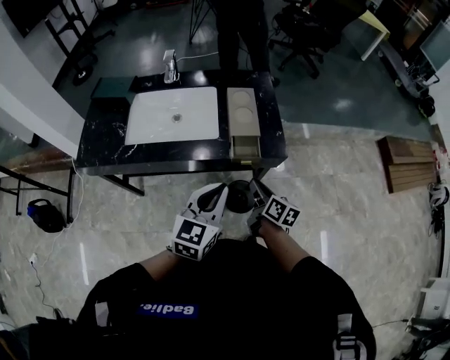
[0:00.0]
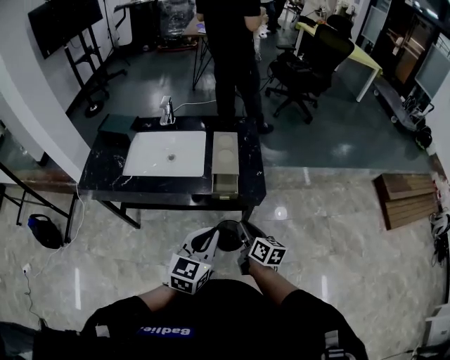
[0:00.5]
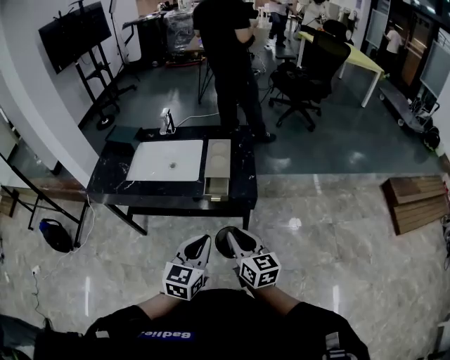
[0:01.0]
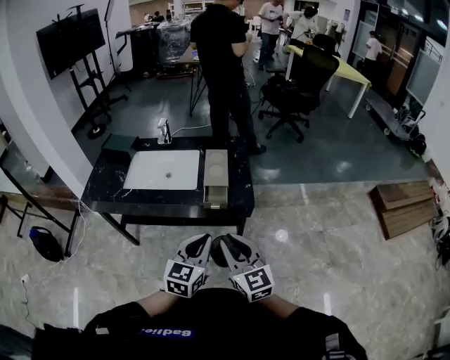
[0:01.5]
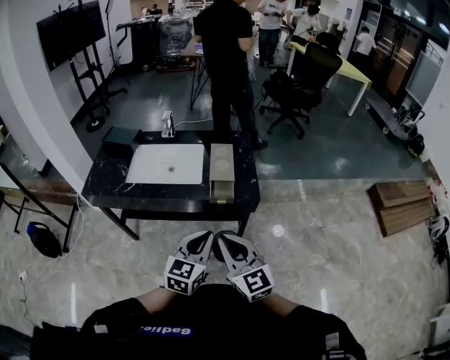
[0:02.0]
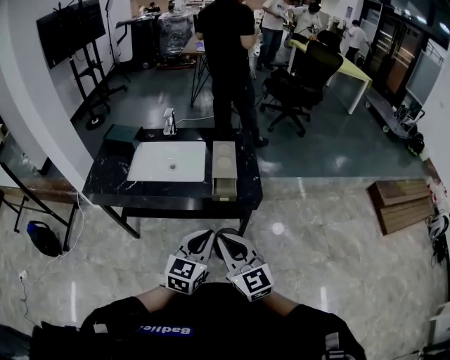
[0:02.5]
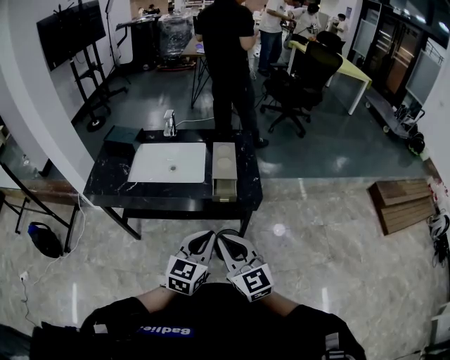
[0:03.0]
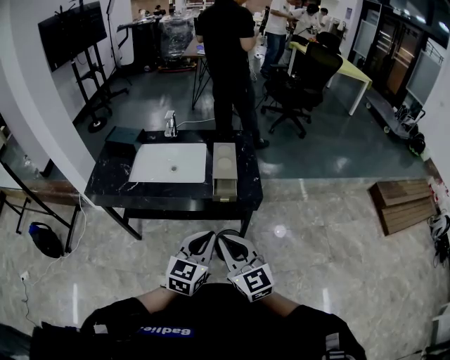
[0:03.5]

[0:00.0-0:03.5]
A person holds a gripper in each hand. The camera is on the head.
0:00.0 to 0:02.0: The right gripper travels upward and backward by some 25 cm, and twists approximately 60 degrees counterclockwise, seen from behind, while the left gripper shifts some 10 cm backward and to the right.
0:02.0 to 0:03.5: The grippers make only small movements.

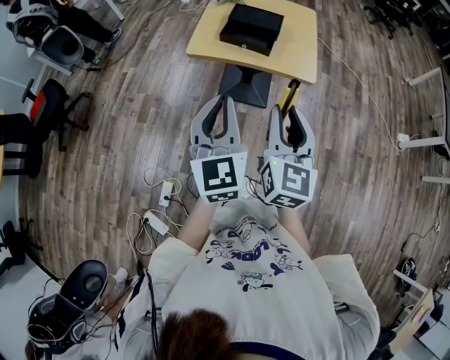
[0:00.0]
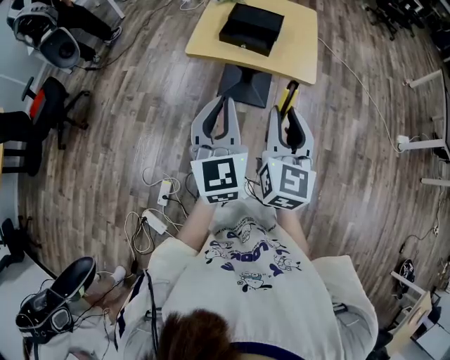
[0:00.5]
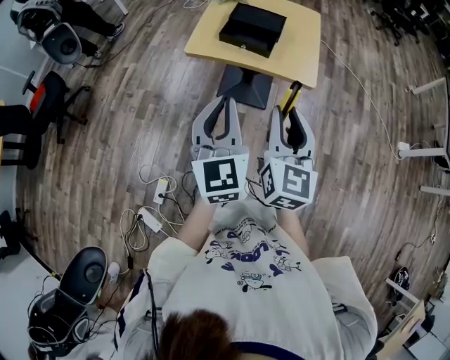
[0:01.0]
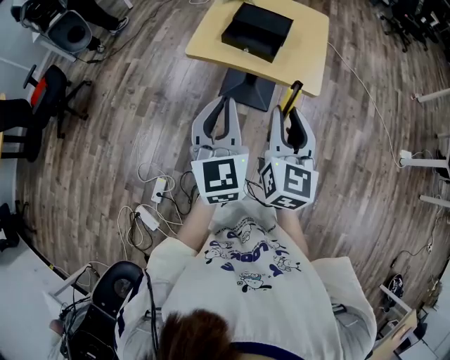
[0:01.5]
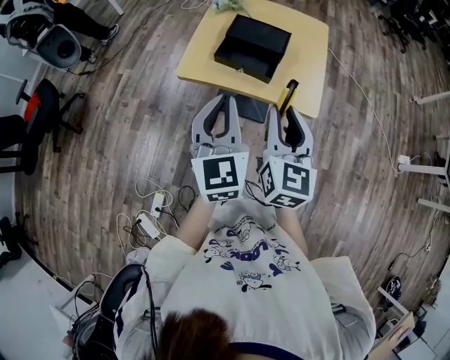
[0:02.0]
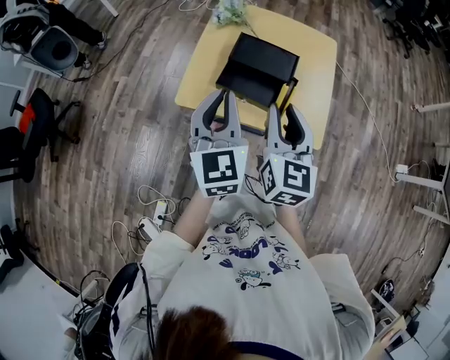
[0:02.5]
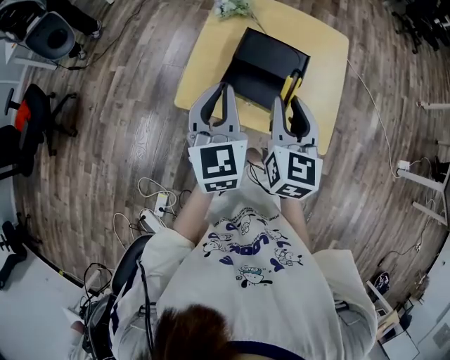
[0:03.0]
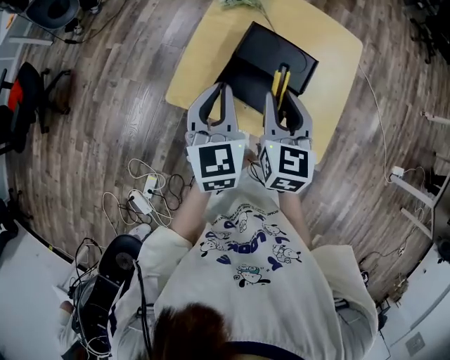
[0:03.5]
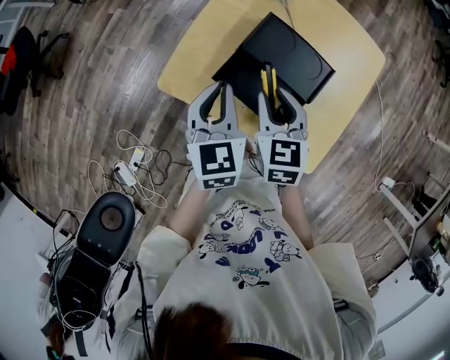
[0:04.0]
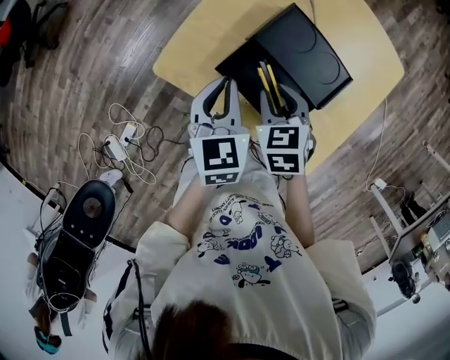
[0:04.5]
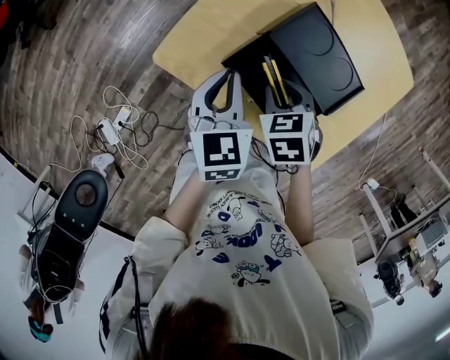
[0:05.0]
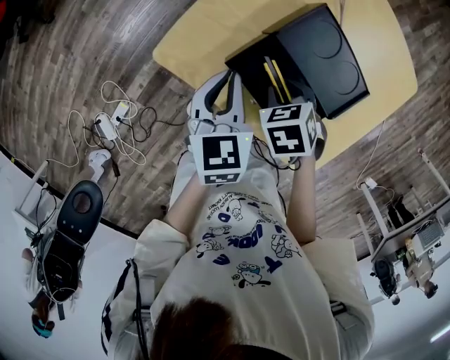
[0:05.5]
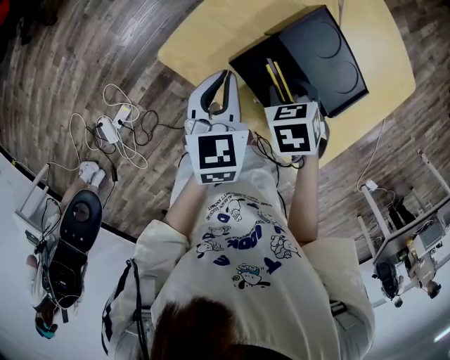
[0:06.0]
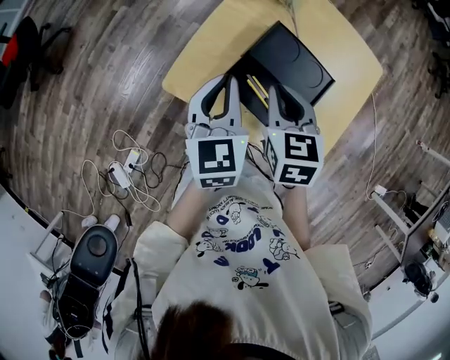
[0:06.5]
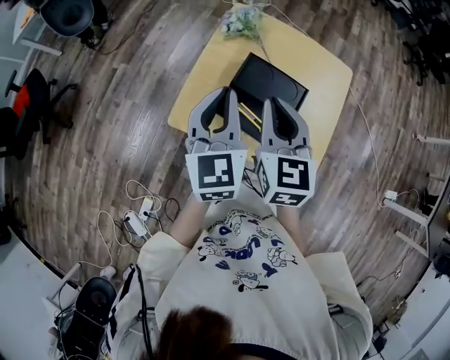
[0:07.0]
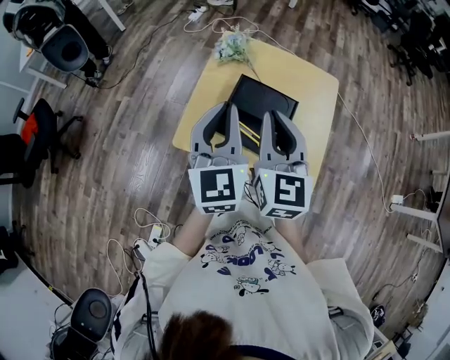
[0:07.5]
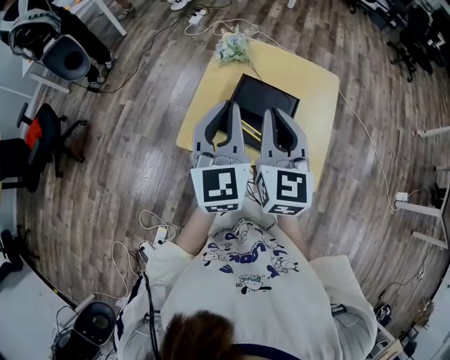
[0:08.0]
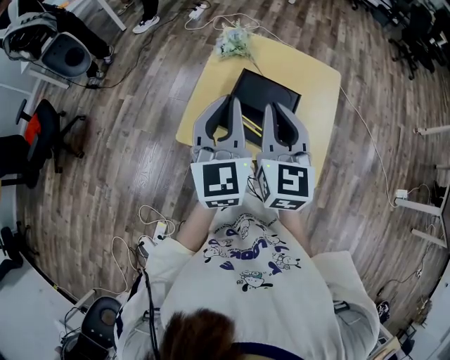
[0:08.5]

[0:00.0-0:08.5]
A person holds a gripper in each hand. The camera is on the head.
0:00.0 to 0:02.0: Both grippers move forward, about 15 cm.
0:02.0 to 0:04.0: Both grippers move forward and downward, roughly 30 cm. The left gripper swivels some 30 degrees. The right gripper changes its angle by approximately 40 degrees.
0:04.0 to 0:06.5: The right gripper travels downward and back again, some 15 cm each way. The left gripper goes downward and returns, approximately 10 cm each way.
0:06.5 to 0:08.5: The two grippers go about 15 cm upward. The left gripper swivels some 30 degrees. Meanwhile the right gripper points its fingers about 30 degrees further upward.

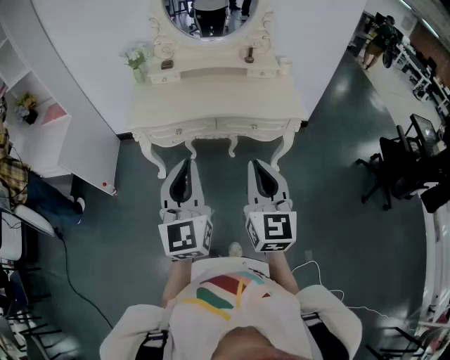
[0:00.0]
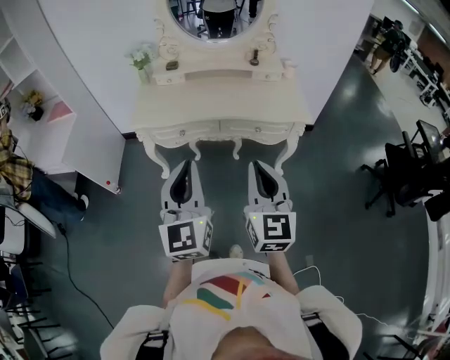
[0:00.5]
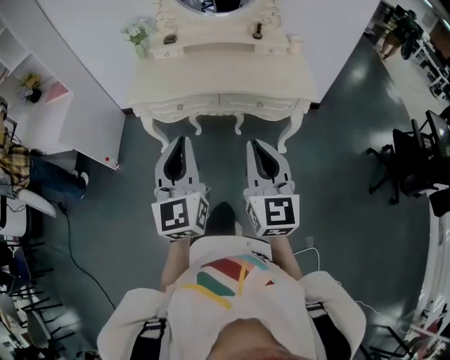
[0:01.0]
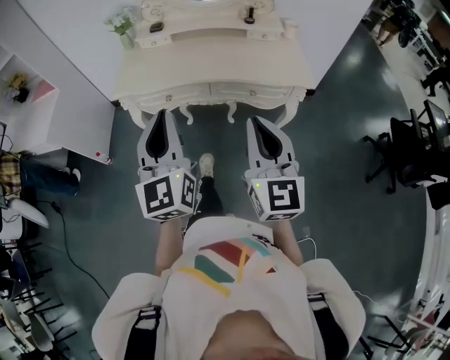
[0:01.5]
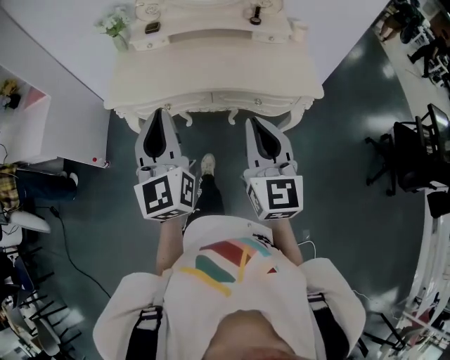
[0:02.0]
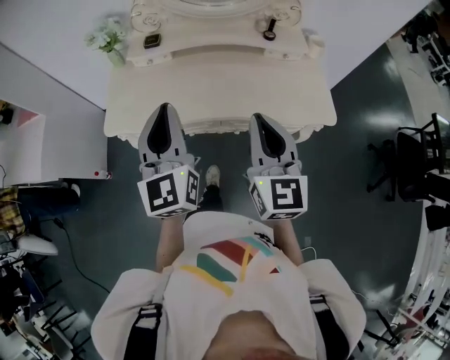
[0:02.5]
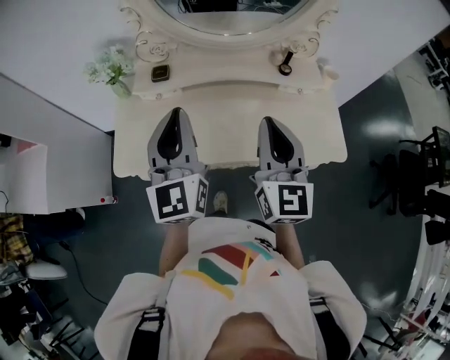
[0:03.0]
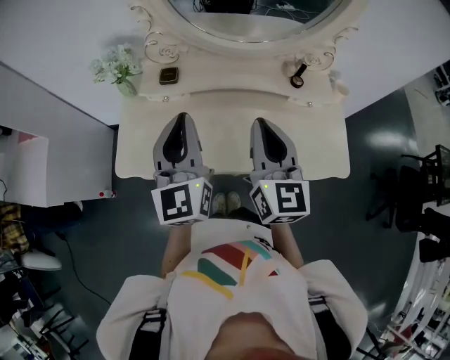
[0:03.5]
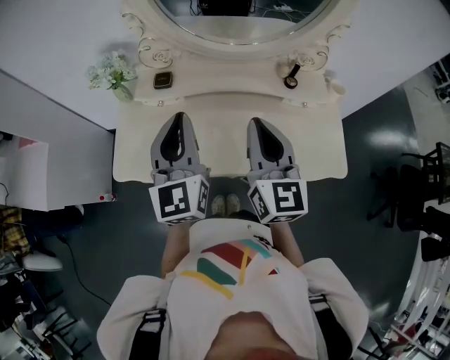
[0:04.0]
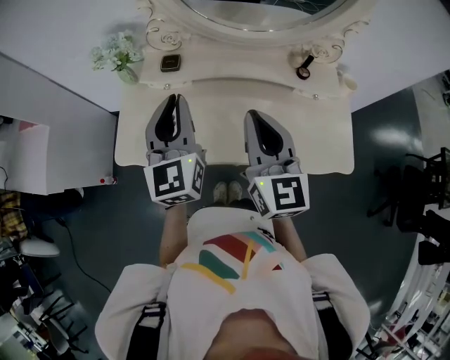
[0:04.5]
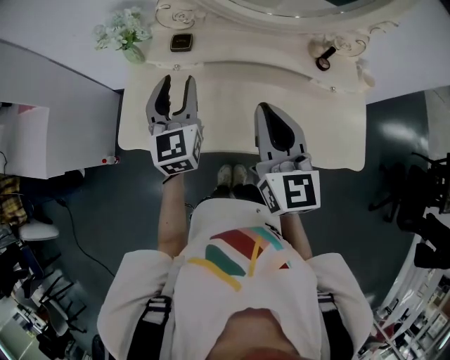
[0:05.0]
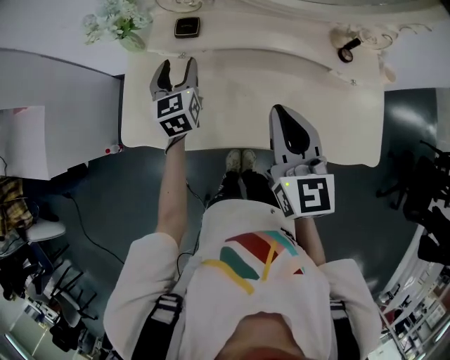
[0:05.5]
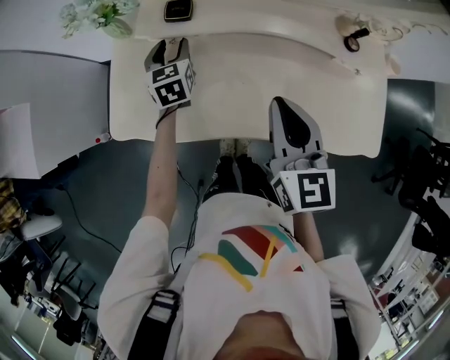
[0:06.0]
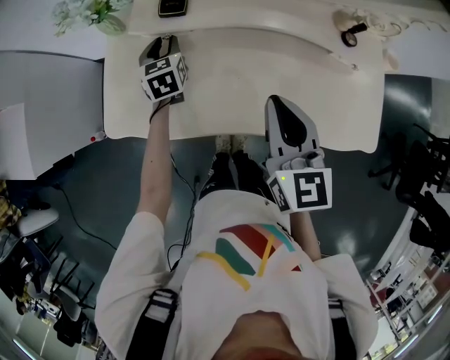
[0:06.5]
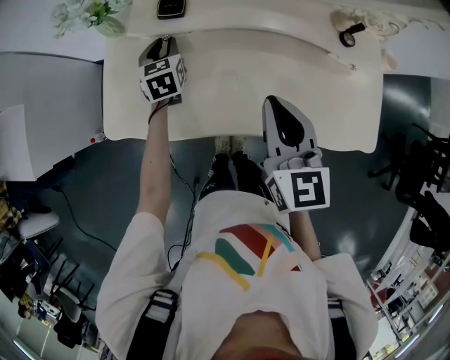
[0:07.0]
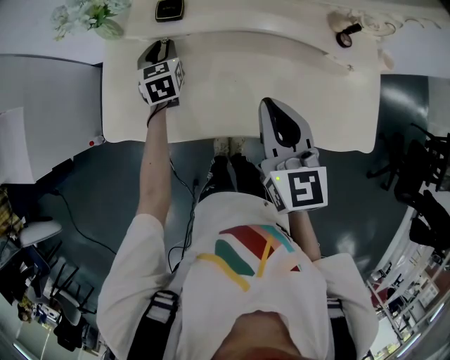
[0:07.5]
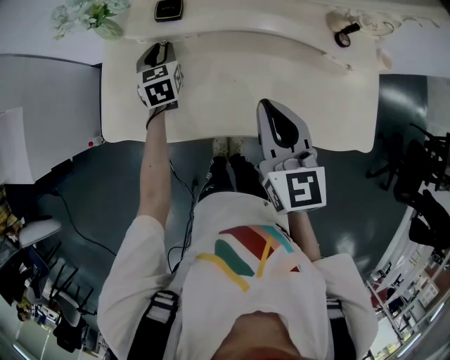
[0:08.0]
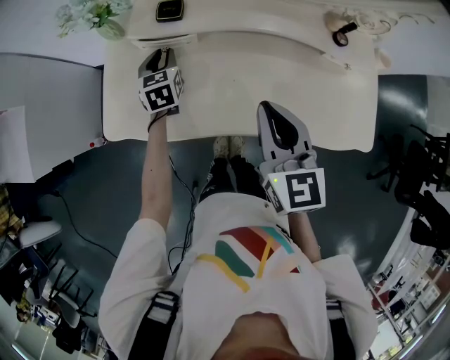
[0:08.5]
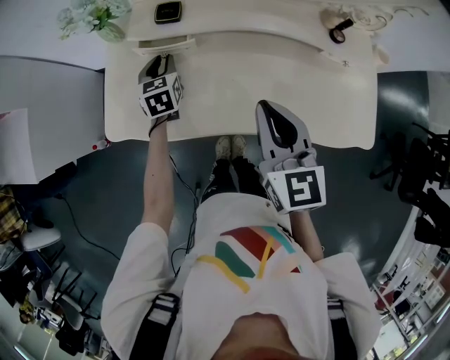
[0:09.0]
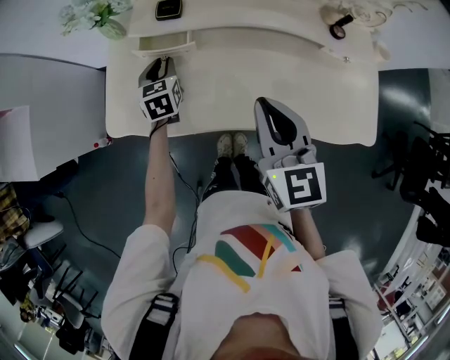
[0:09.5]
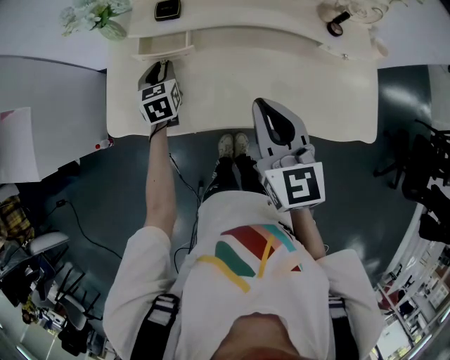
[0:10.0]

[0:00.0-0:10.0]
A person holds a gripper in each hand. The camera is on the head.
0:00.0 to 0:02.0: The two grippers go approximately 15 cm forward.
0:02.0 to 0:04.0: Both grippers move forward, roughly 35 cm.
0:04.0 to 0:06.0: The right gripper shifts approximately 15 cm downward and to the left; the left gripper shifts some 35 cm downward and forward, tilts its fingers some 40 degrees downward, and opens its fingers.
0:06.0 to 0:08.0: The left gripper closes its fingers.
0:08.0 to 0:10.0: The left gripper goes approximately 5 cm backward.

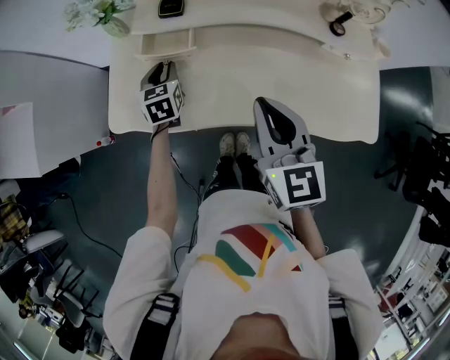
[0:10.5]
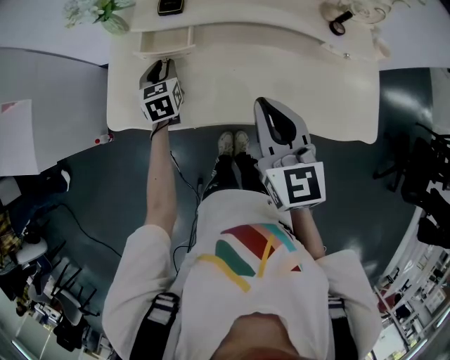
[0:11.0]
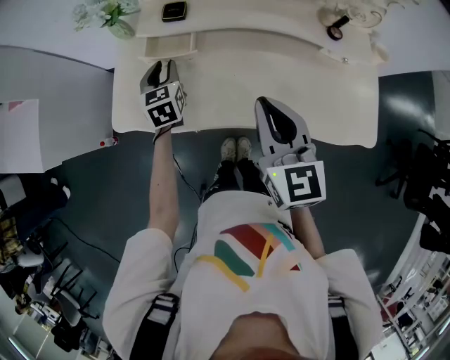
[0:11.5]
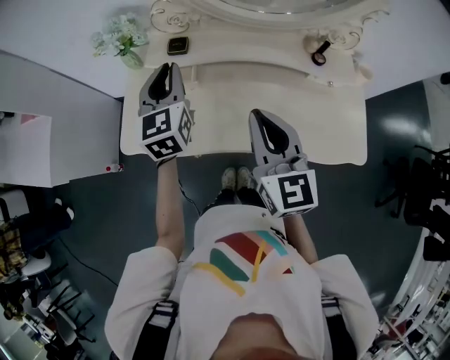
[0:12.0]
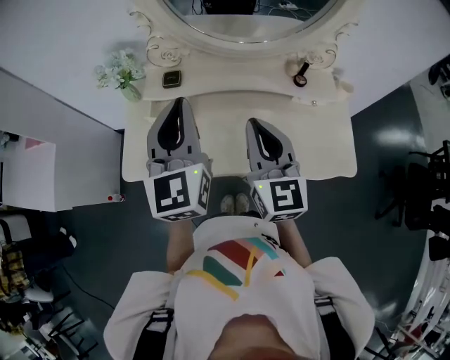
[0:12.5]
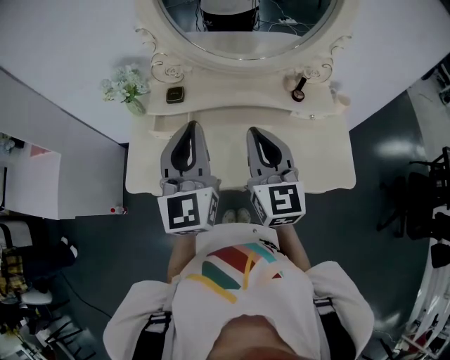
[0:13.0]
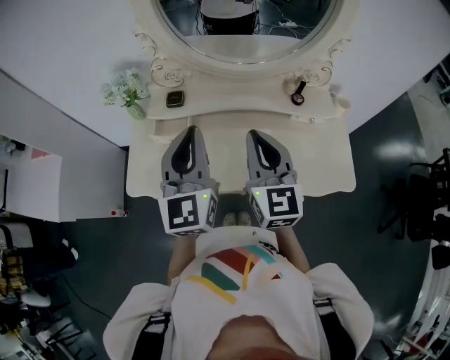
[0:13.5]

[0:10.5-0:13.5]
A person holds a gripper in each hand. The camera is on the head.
0:10.5 to 0:12.0: The right gripper shifts approximately 5 cm upward. The left gripper moves upward, roughly 25 cm, and turns by roughly 30 degrees.
0:12.0 to 0:13.5: The left gripper heads upward, backward and to the right, covering some 15 cm; the right gripper shifts by about 5 cm.

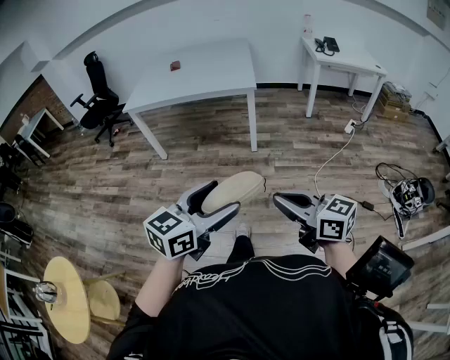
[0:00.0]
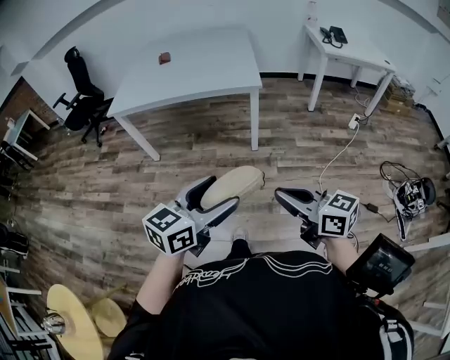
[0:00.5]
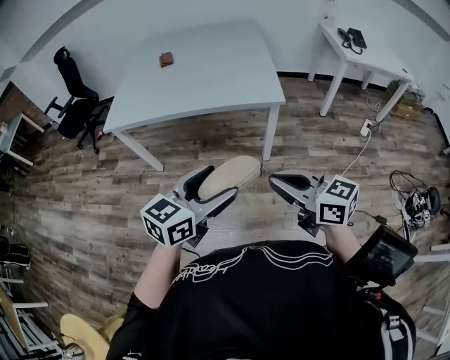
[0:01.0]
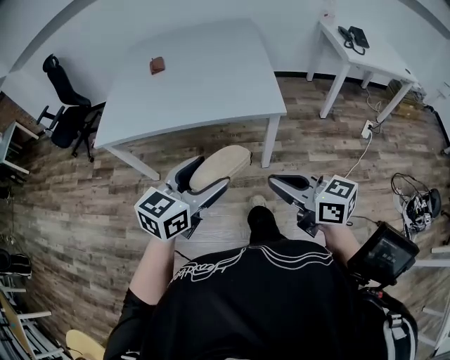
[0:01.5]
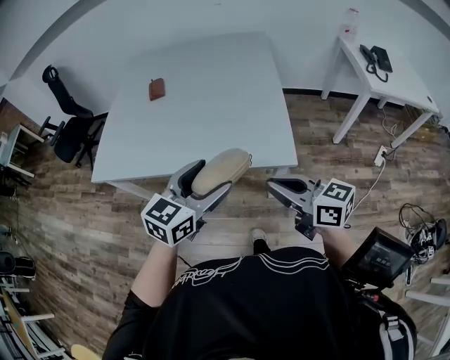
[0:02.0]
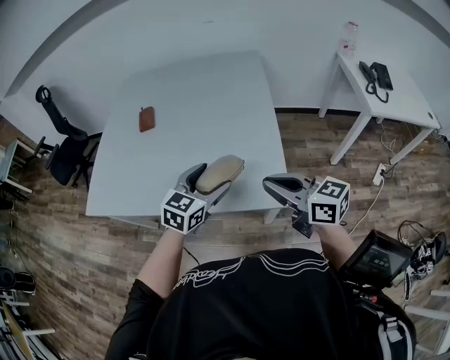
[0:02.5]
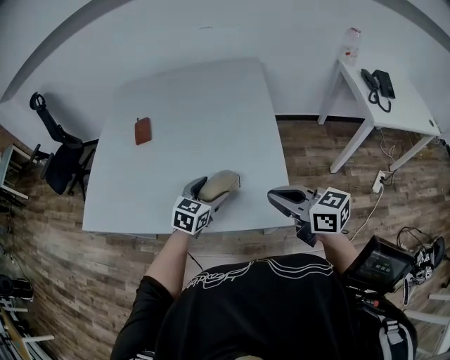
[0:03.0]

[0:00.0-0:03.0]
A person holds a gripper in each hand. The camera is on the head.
0:00.0 to 0:01.5: Both grippers are carried forward, about 50 cm.
0:01.5 to 0:03.0: Both grippers are carried forward, approximately 40 cm.
